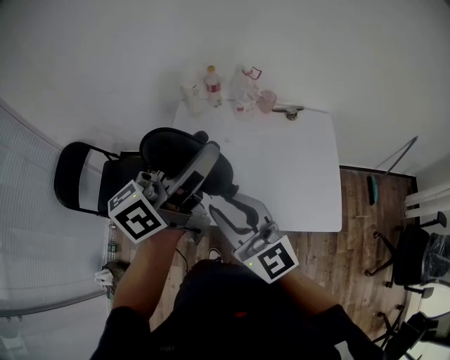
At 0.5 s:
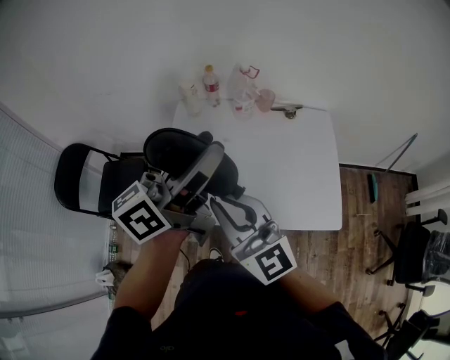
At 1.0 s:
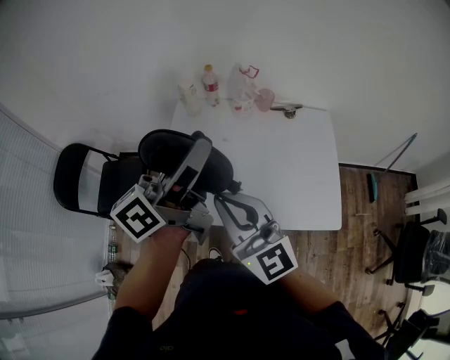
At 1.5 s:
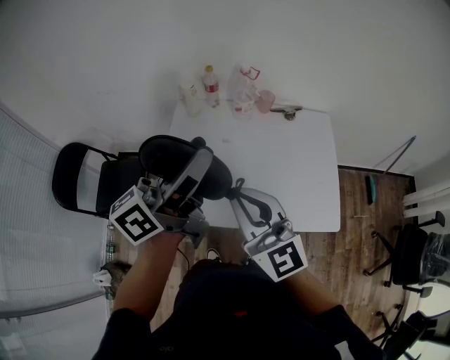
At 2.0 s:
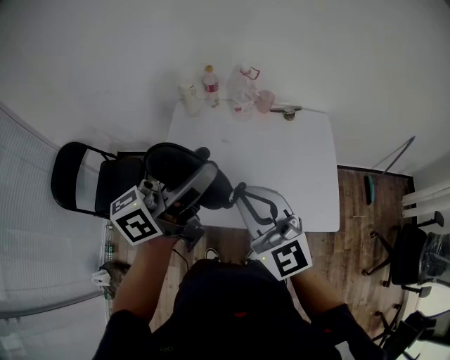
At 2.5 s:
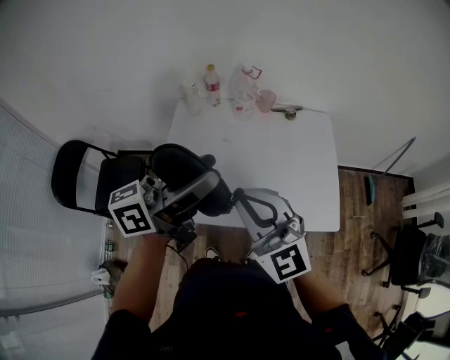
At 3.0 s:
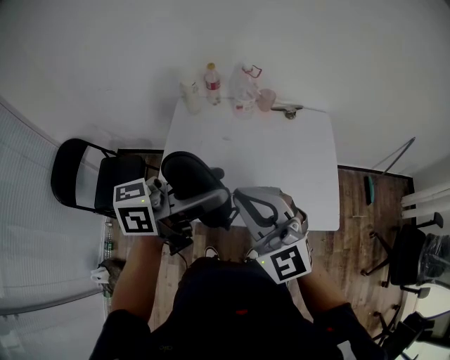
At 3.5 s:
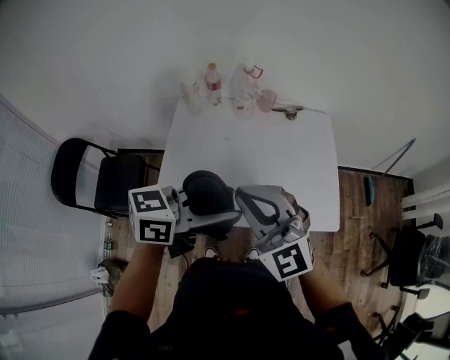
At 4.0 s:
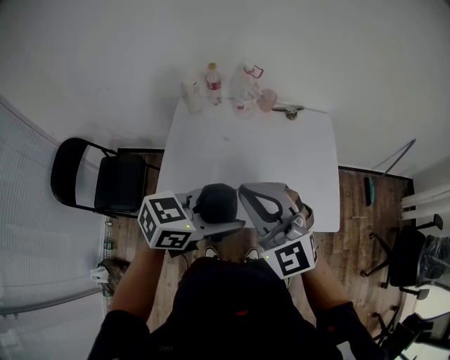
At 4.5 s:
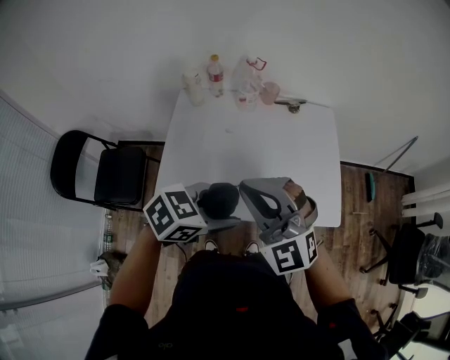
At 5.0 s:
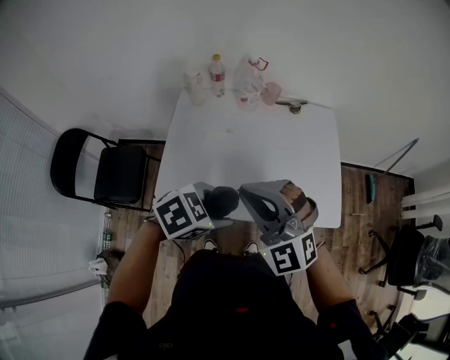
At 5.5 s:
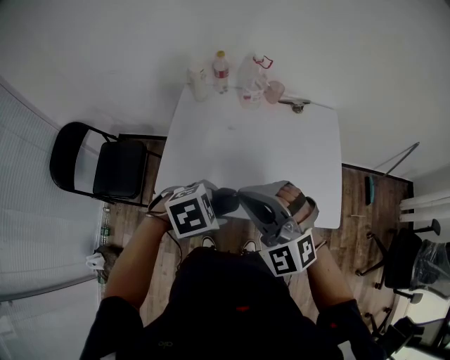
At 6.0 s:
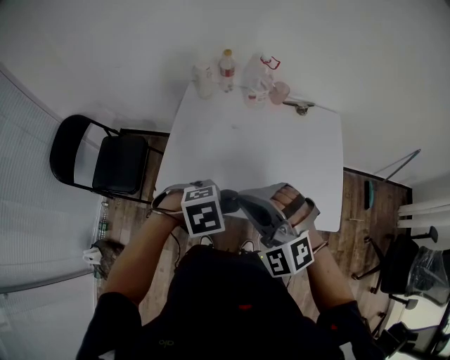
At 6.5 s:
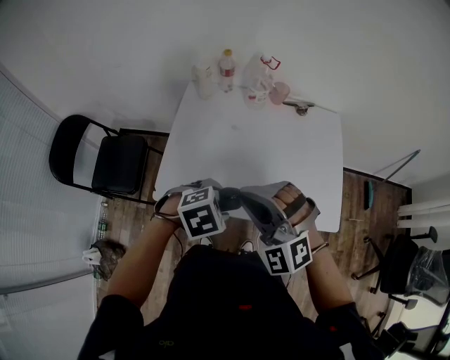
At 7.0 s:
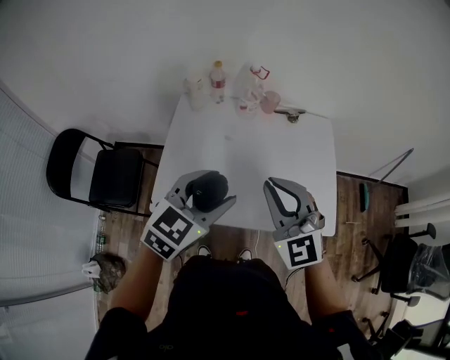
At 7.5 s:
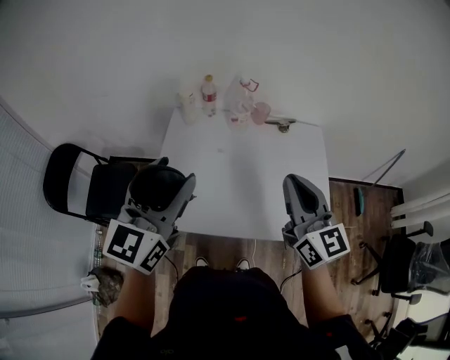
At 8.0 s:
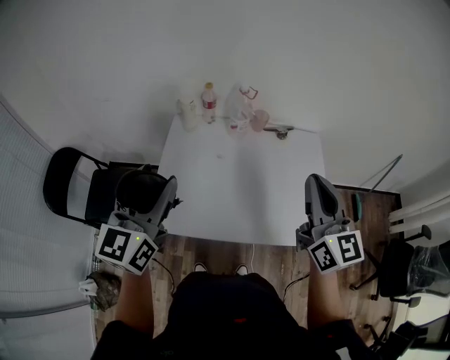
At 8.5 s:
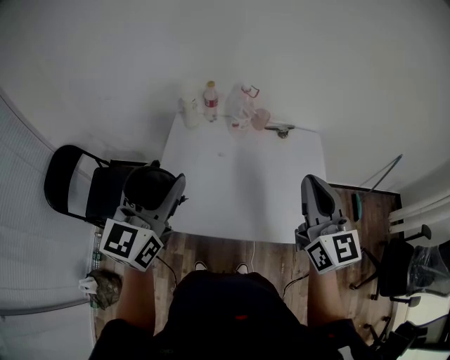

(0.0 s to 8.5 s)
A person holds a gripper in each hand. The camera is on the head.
0.0 s - 2.0 s: The right gripper changes place by some 5 cm, and closes up.
2.0 s - 4.0 s: The left gripper heads downward, to the right and backward, covering some 15 cm, and tips its fingers downward by about 40 degrees.
4.0 s - 6.5 s: The left gripper is displaced downward by roughly 15 cm, and tips its fingers downward by some 50 degrees. Meanwhile the right gripper goes about 5 cm downward, and rotates roughly 30 degrees.
6.5 s - 8.5 s: The right gripper travels to the right, upward and forward by approximately 20 cm, and rotates around the line of its fingers by about 60 degrees, clockwise from behind, while the left gripper heads upward and to the left, covering some 25 cm, and angles its fingers upward, by approximately 70 degrees.

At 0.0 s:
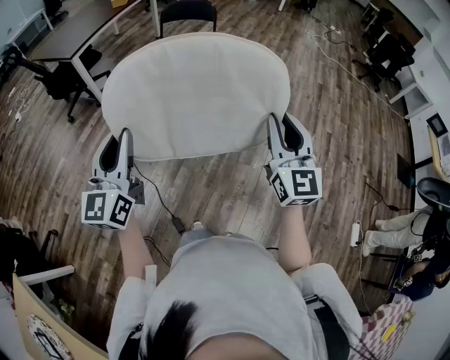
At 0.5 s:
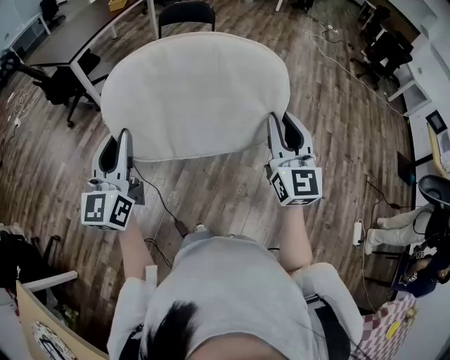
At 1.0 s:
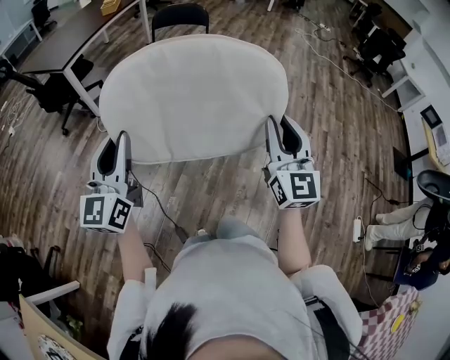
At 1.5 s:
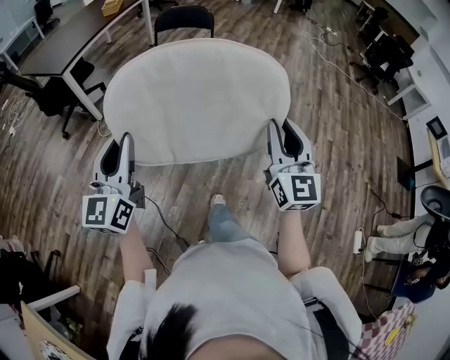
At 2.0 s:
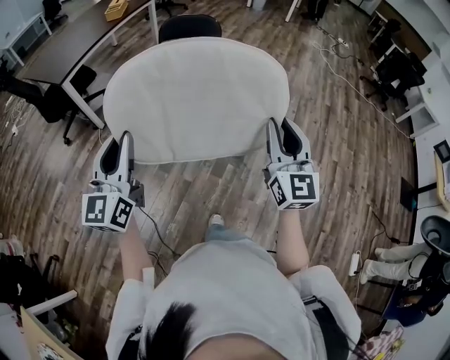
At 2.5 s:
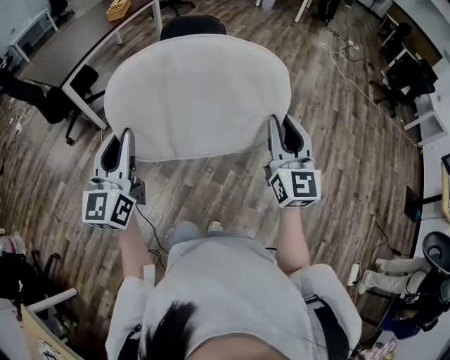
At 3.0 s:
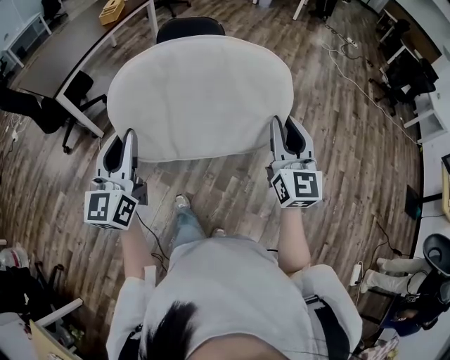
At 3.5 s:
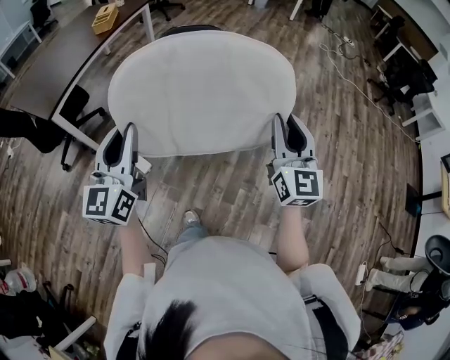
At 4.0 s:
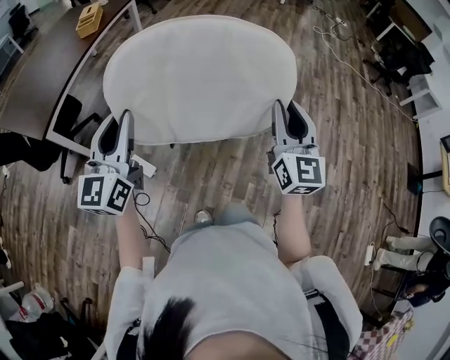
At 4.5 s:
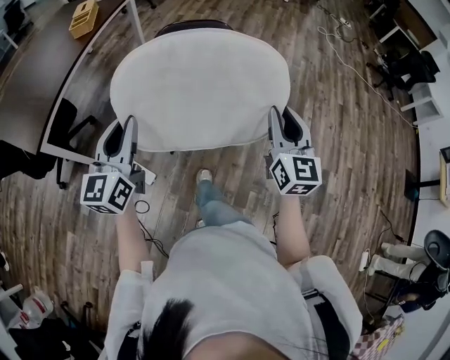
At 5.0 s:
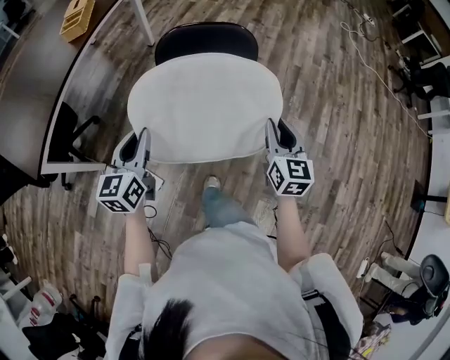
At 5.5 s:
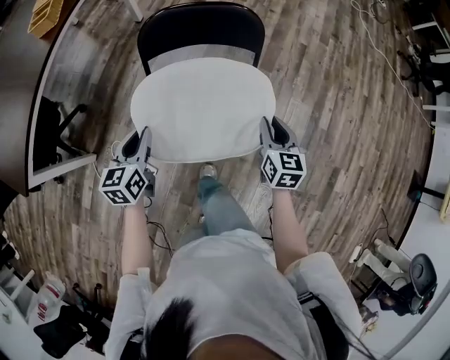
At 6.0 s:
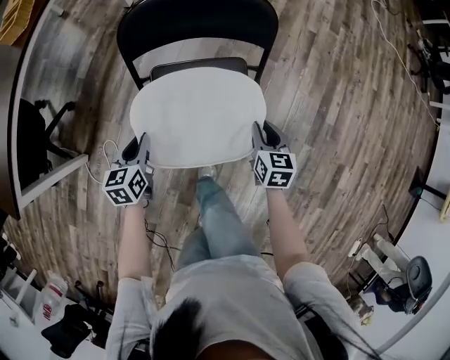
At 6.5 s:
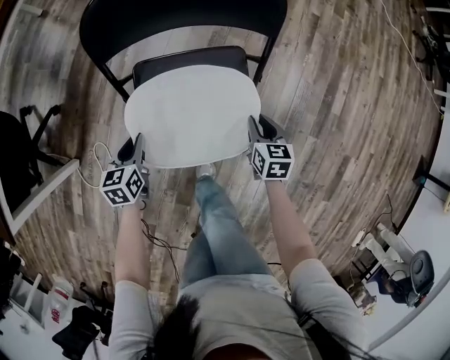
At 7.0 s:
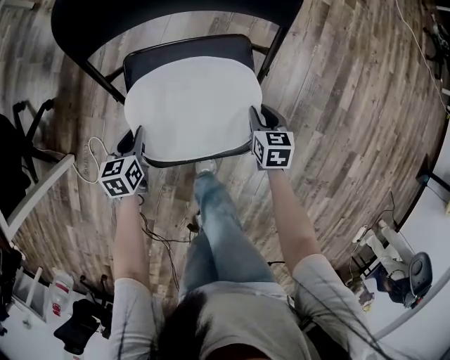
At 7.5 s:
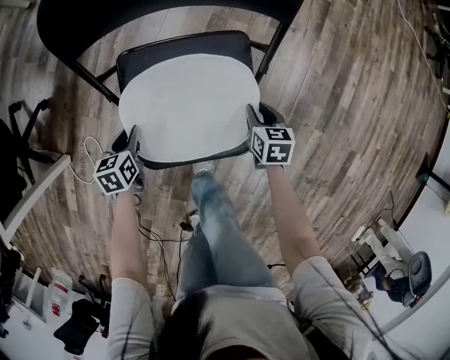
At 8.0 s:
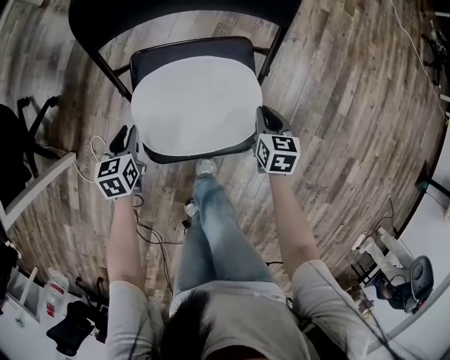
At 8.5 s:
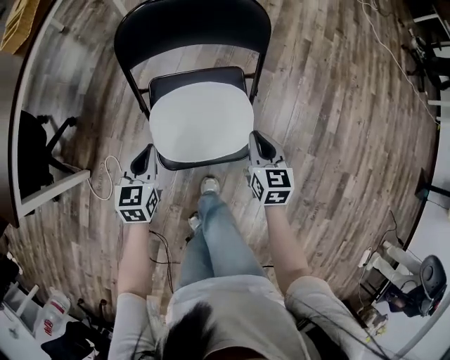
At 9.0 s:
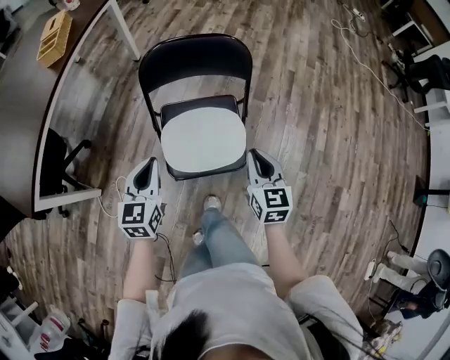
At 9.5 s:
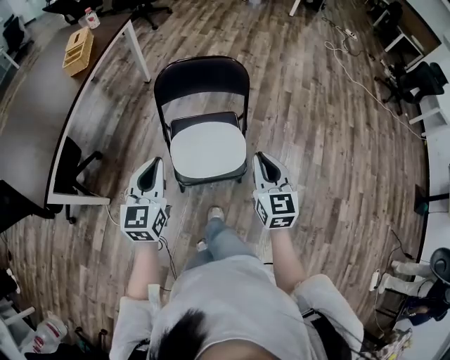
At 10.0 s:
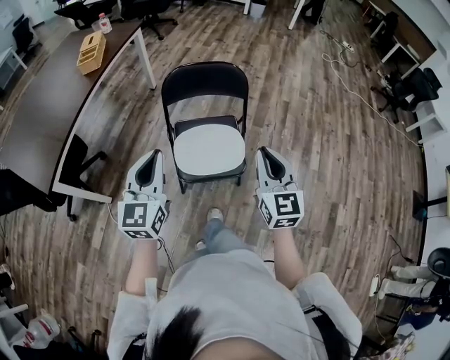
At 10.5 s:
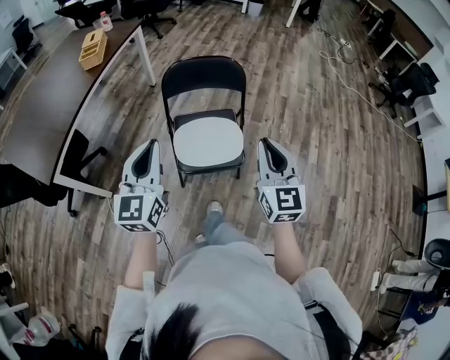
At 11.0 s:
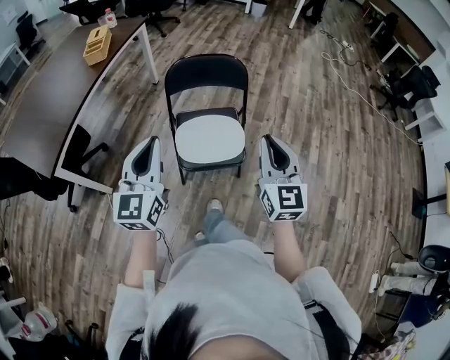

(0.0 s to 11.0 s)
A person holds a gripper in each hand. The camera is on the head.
0.0 s - 2.0 s: Both grippers move forward, some 25 cm.
2.0 s - 3.5 s: Both grippers move forward, some 30 cm.
3.5 s - 5.5 s: The two grippers travel together, forward, about 50 cm. Both grippers travel together downward, approximately 35 cm. The right gripper angles its fingers downward, by some 40 degrees; the left gripper angles its fingers downward, by roughly 40 degrees.
5.5 s - 7.5 s: Both grippers move downward, roughly 35 cm. The left gripper turns by roughly 30 degrees; the right gripper turns by approximately 30 degrees.
7.5 s - 9.0 s: The grippers both shift upward by approximately 40 cm. The left gripper points its fingers some 30 degrees further upward. The right gripper tips its fingers upward by some 30 degrees.
9.0 s - 11.0 s: Both grippers travel together upward and backward, about 30 cm. The left gripper rotates approximately 30 degrees. The right gripper changes its angle by roughly 20 degrees.

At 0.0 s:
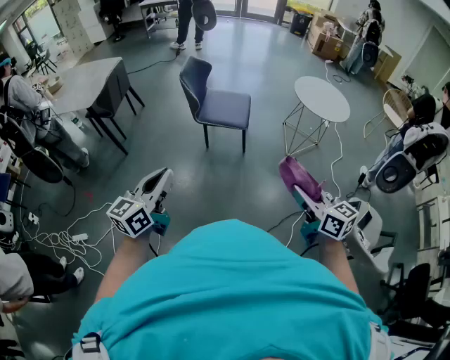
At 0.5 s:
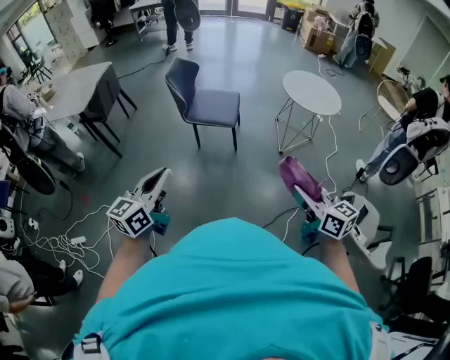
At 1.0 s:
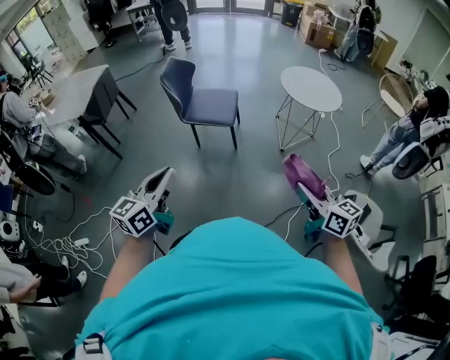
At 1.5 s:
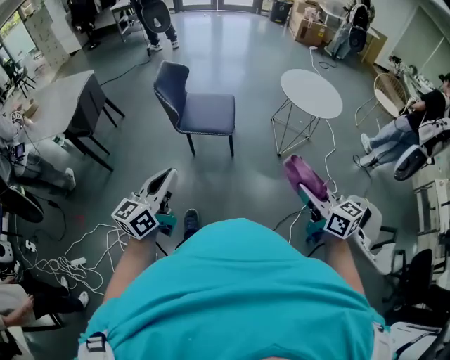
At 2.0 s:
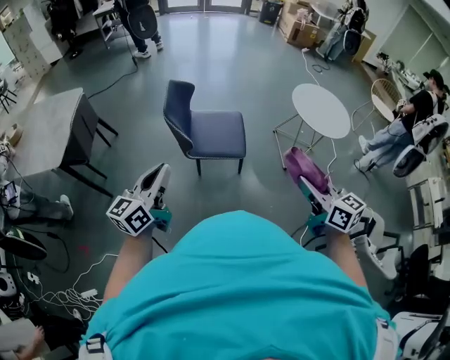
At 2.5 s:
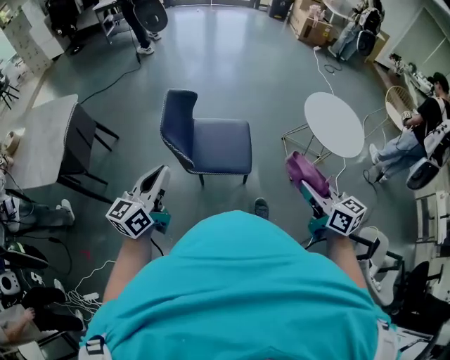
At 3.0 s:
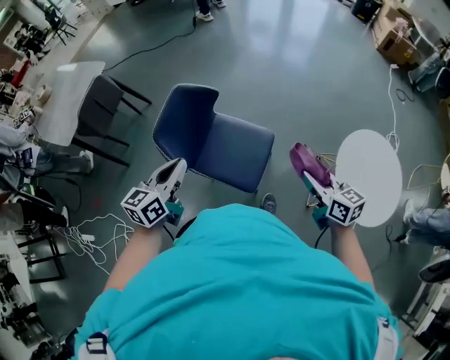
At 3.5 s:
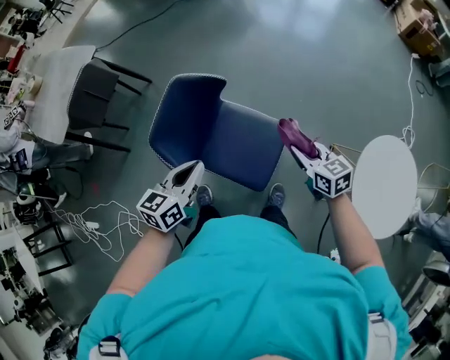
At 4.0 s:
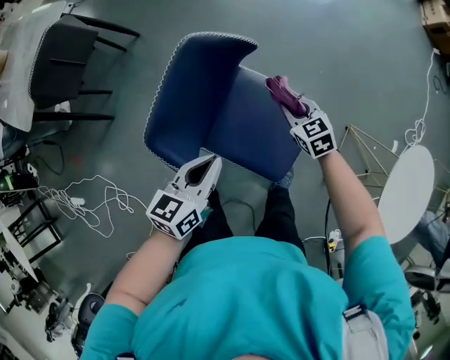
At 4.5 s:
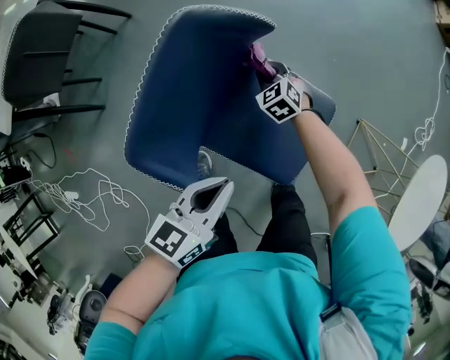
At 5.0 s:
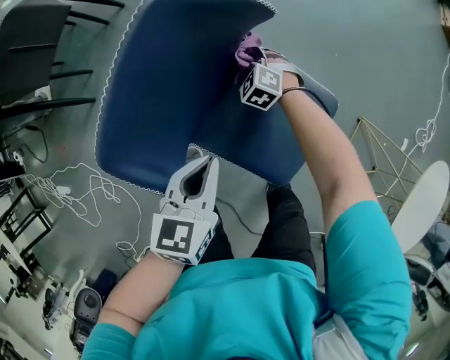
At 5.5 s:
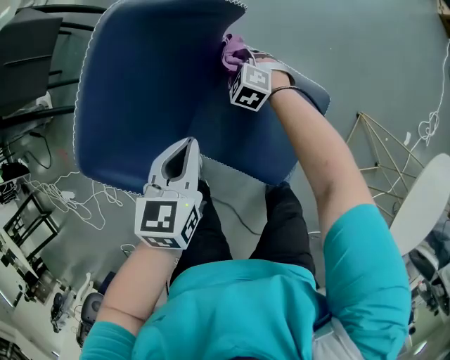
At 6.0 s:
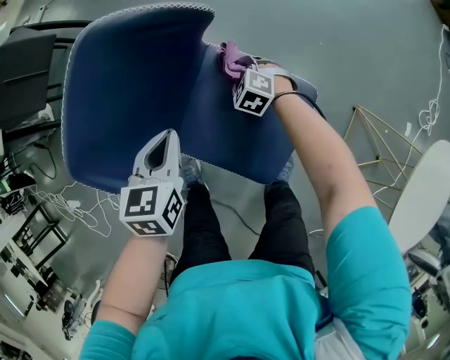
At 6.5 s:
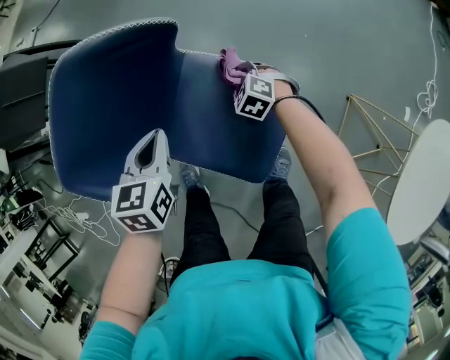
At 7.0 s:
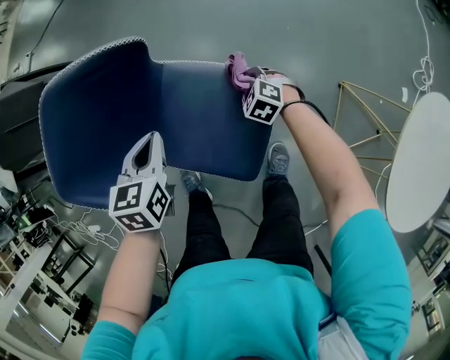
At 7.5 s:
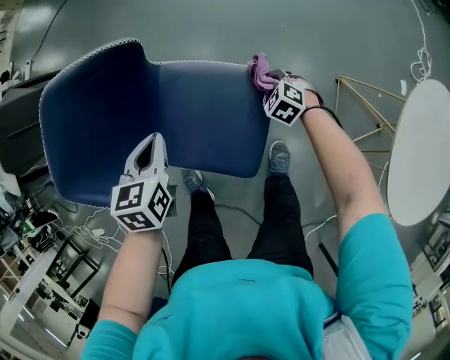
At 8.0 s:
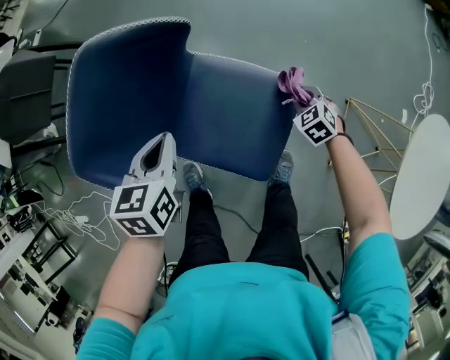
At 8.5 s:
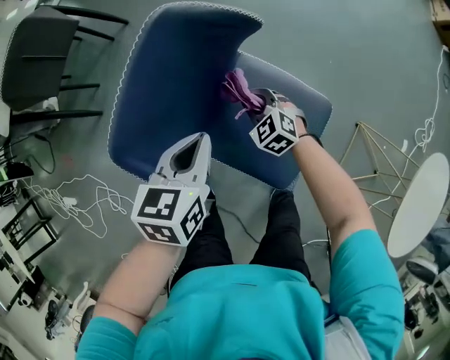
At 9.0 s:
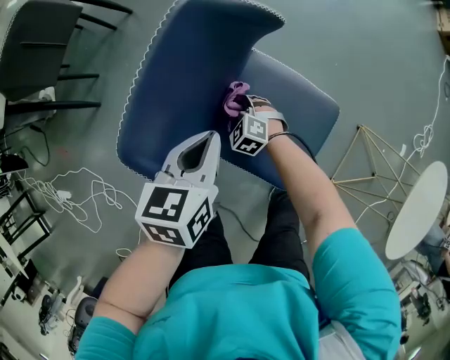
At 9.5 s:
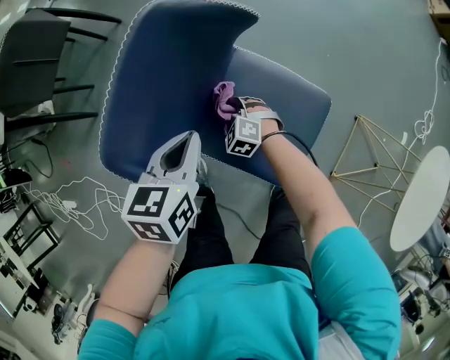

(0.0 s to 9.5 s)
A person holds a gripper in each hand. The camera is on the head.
0.0 s - 2.0 s: The grippers both shift forward by approximately 35 cm.
2.0 s - 4.0 s: The two grippers travel together, about 50 cm. The right gripper angles its fingers downward, by some 30 degrees, while the left gripper tilts its fingers about 30 degrees downward.
4.0 s - 5.5 s: The right gripper is displaced downward and to the left by some 25 cm, and rotates about 40 degrees, while the left gripper travels downward by some 10 cm, and changes its angle by approximately 30 degrees.
5.5 s - 7.5 s: The left gripper heads to the right, covering roughly 10 cm, while the right gripper is displaced to the right and backward by roughly 30 cm, and changes its angle by roughly 20 degrees.
7.5 s - 9.5 s: The right gripper moves to the left, approximately 35 cm, and changes its angle by some 20 degrees. The left gripper heads to the left, covering about 15 cm.
